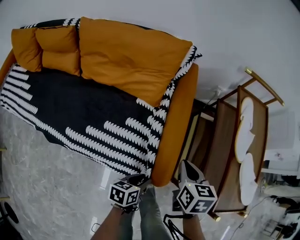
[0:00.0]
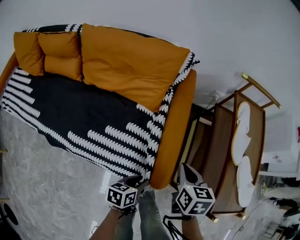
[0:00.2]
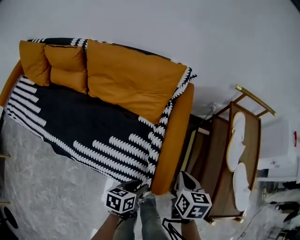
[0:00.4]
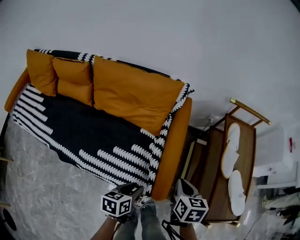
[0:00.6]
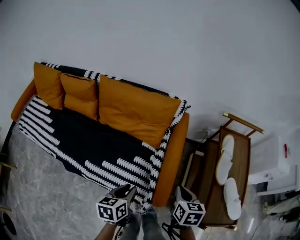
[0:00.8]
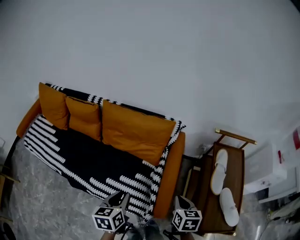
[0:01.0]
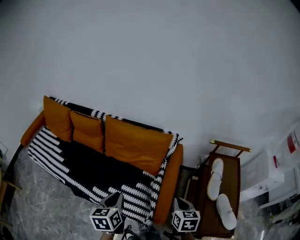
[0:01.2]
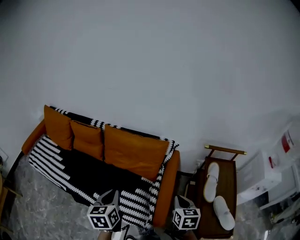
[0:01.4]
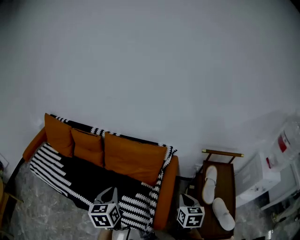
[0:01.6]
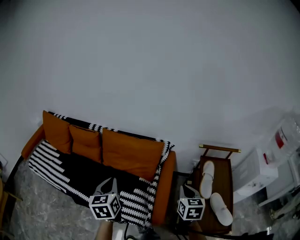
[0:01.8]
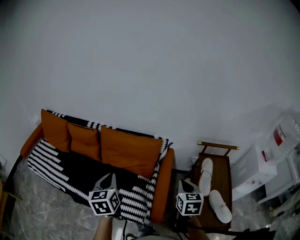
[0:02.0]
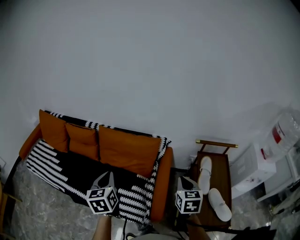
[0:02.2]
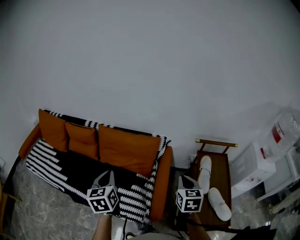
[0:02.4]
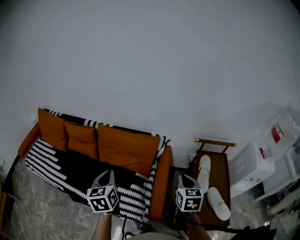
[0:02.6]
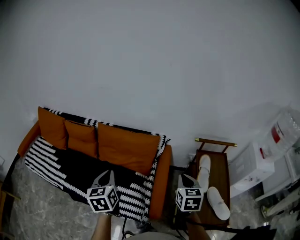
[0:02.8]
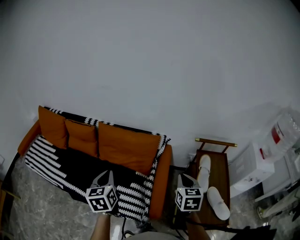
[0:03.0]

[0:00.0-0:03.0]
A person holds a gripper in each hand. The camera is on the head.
0:00.0 to 0:01.6: The left gripper travels upward by some 50 cm, rotates some 50 degrees, and closes its fingers, while the right gripper is displaced upward by roughly 30 cm.
0:01.6 to 0:03.0: The right gripper changes place by roughly 5 cm.

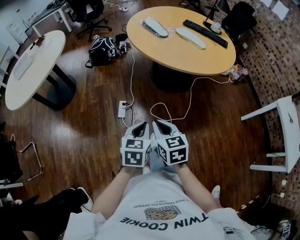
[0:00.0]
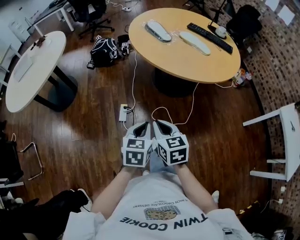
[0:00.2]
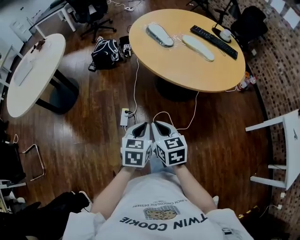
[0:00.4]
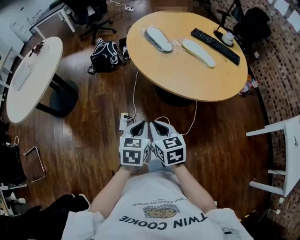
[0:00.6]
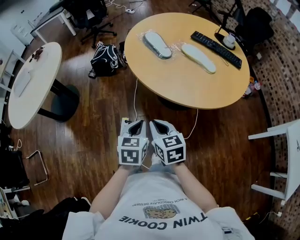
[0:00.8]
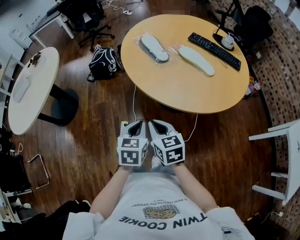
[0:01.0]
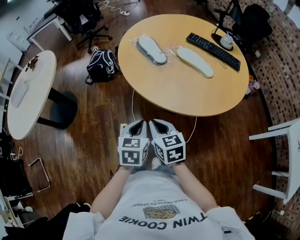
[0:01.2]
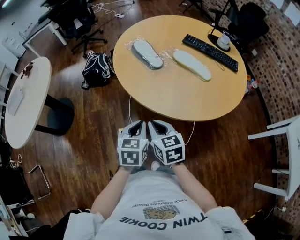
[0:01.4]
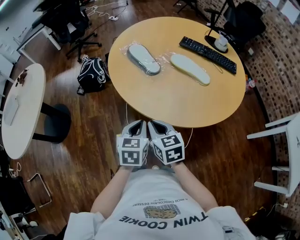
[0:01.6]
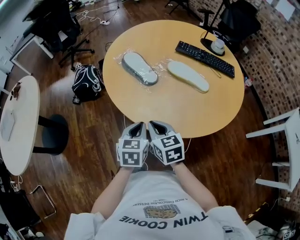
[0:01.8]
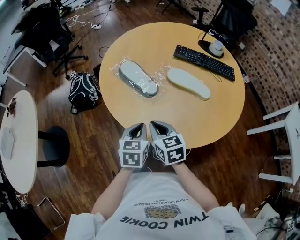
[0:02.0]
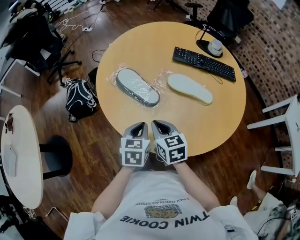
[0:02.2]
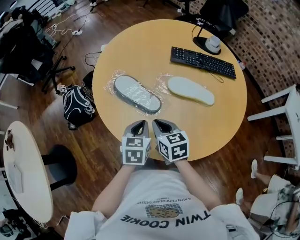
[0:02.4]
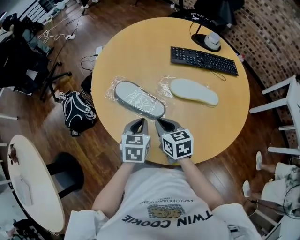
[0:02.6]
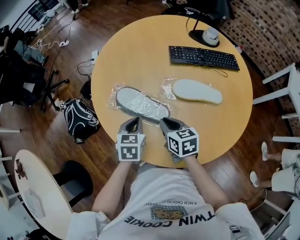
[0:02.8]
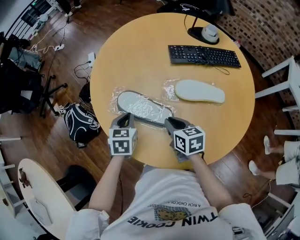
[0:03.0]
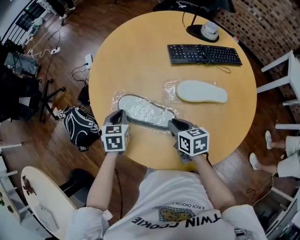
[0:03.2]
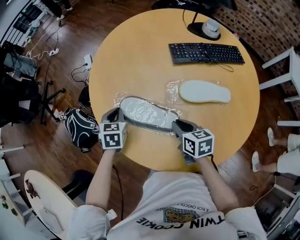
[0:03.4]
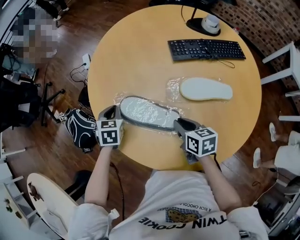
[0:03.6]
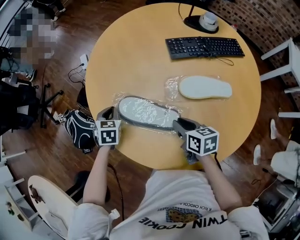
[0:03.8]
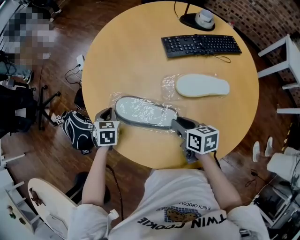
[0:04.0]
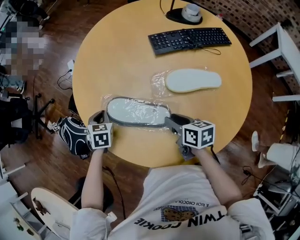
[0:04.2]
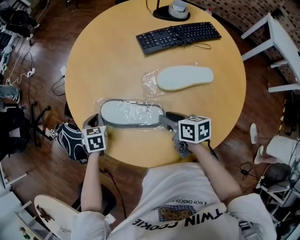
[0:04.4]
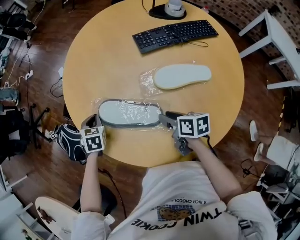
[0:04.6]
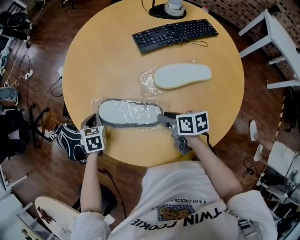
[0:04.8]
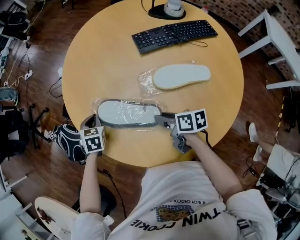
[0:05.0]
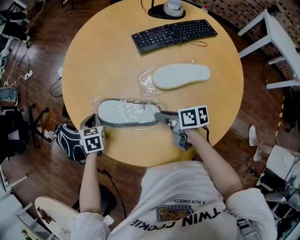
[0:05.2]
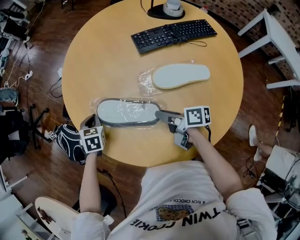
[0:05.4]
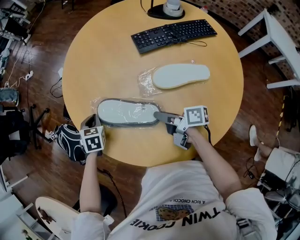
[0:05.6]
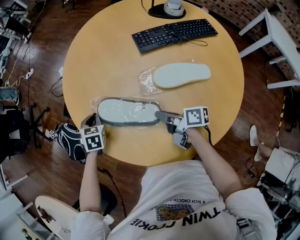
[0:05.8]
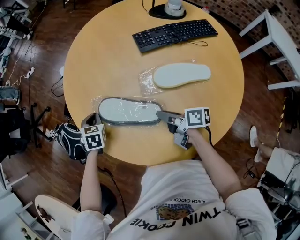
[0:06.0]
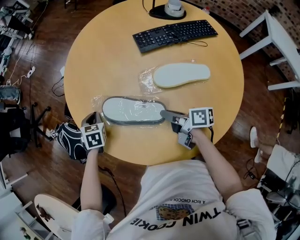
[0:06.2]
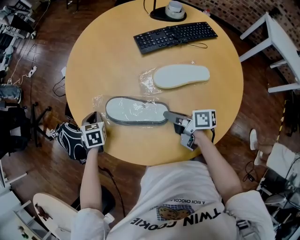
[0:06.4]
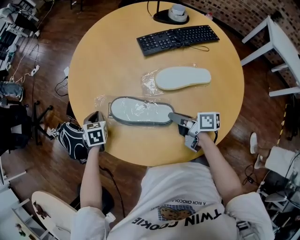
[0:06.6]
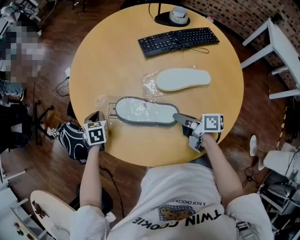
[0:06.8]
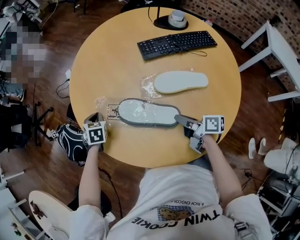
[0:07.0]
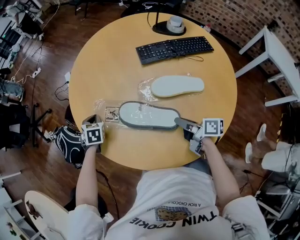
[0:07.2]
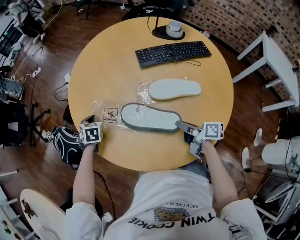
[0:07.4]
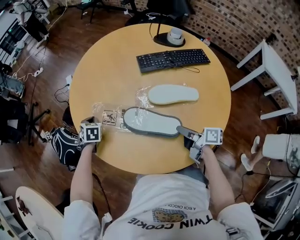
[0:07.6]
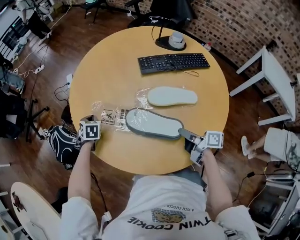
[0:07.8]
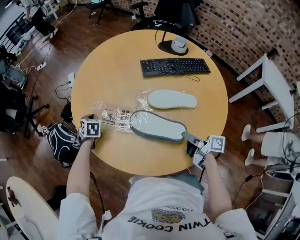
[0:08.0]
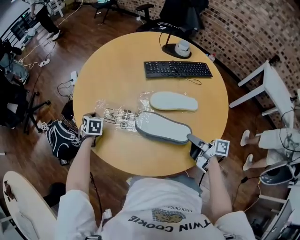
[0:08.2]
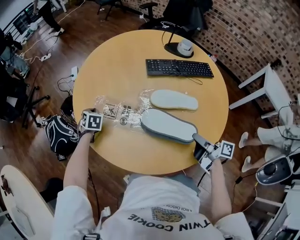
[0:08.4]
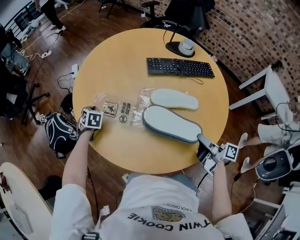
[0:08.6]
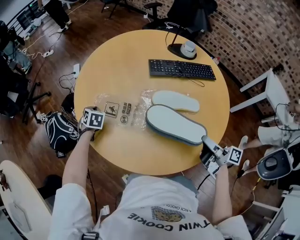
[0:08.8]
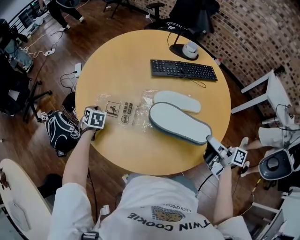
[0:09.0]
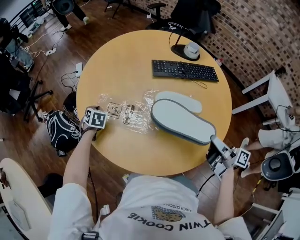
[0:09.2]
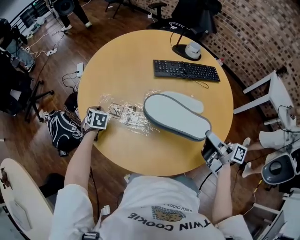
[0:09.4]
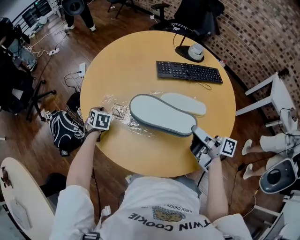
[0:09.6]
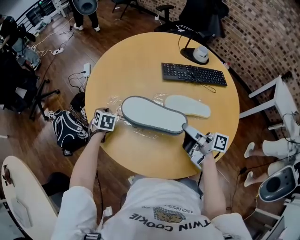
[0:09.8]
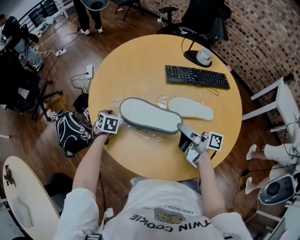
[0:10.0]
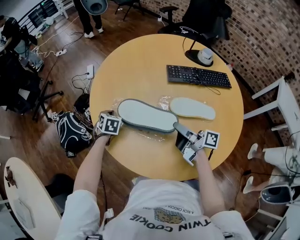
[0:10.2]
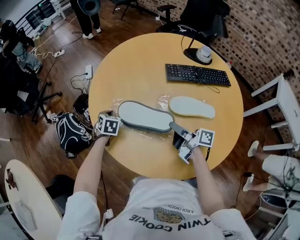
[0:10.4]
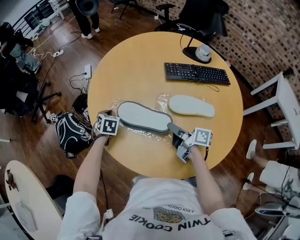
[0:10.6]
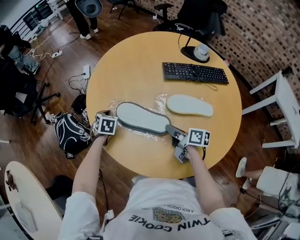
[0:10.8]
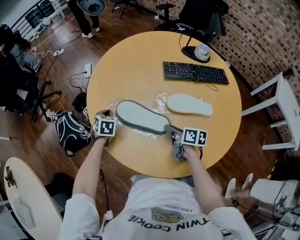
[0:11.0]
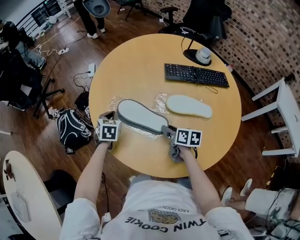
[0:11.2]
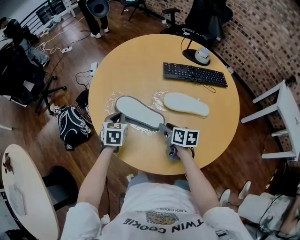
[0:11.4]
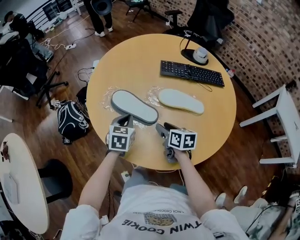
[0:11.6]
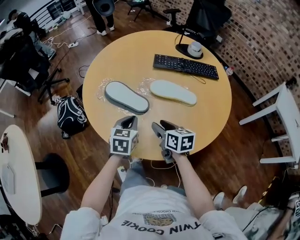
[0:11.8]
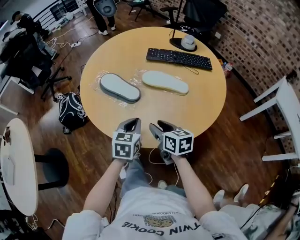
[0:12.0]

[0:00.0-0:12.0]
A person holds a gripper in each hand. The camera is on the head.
0:00.0 to 0:01.6: The grippers both shift forward by roughly 40 cm.
0:01.6 to 0:03.0: The two grippers go about 40 cm forward. The left gripper swivels some 30 degrees, while the right gripper swivels approximately 40 degrees.
0:03.0 to 0:04.4: The right gripper changes its angle by some 20 degrees, and opens. Meanwhile the left gripper moves forward, downward and to the left, some 15 cm.
0:04.4 to 0:06.0: The right gripper swivels about 30 degrees.
0:06.0 to 0:07.6: The right gripper travels backward and to the right by approximately 15 cm.
0:07.6 to 0:09.0: The right gripper goes about 15 cm upward, to the right and backward.
0:09.0 to 0:10.4: The right gripper travels forward, to the left and downward by approximately 25 cm.
0:10.4 to 0:12.0: The left gripper travels backward and to the right by about 40 cm, and turns by about 30 degrees, while the right gripper shifts about 20 cm backward, turns by some 50 degrees, and opens its fingers.

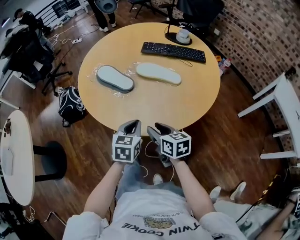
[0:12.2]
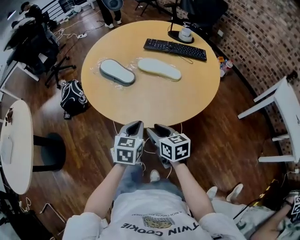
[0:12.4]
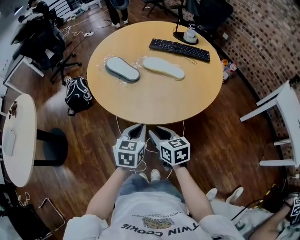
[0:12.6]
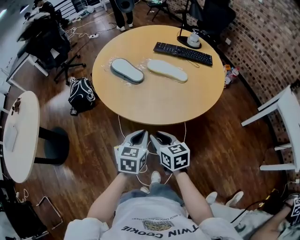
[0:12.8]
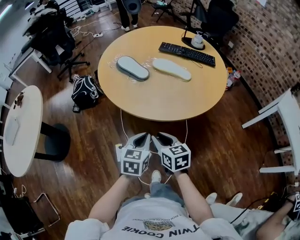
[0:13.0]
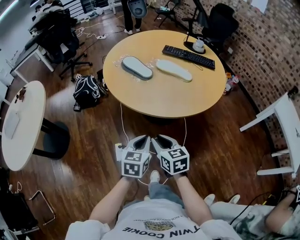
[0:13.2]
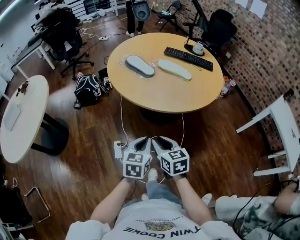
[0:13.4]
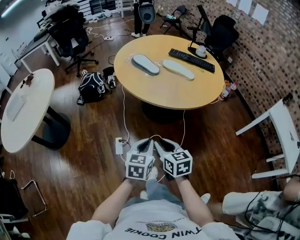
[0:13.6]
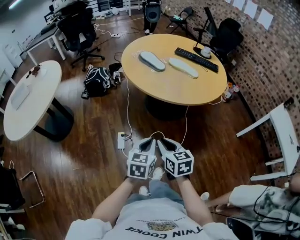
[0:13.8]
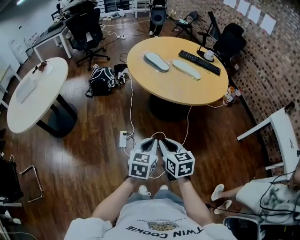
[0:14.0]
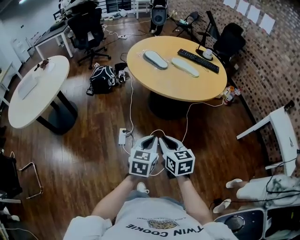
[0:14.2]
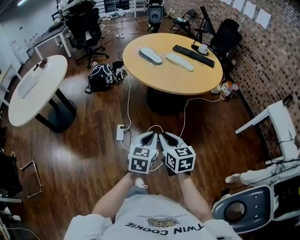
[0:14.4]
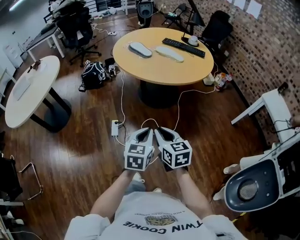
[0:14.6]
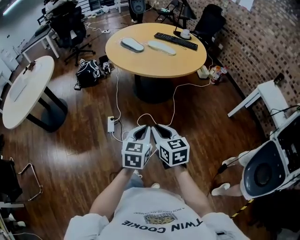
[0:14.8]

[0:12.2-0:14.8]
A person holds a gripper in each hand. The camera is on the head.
0:12.2 to 0:13.4: Both grippers travel together backward, approximately 25 cm.
0:13.4 to 0:14.8: The grippers both shift backward by roughly 25 cm.

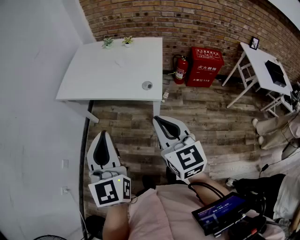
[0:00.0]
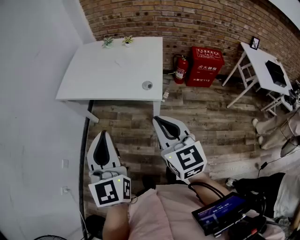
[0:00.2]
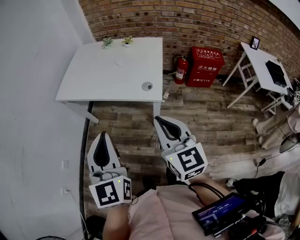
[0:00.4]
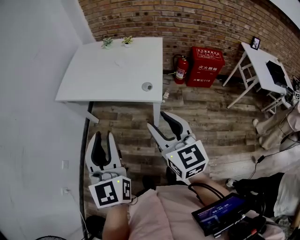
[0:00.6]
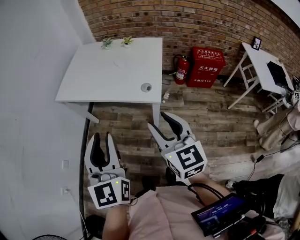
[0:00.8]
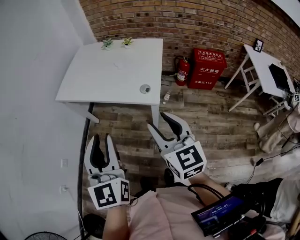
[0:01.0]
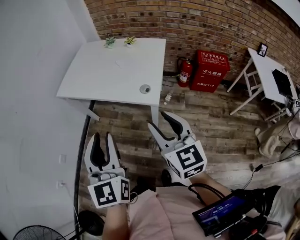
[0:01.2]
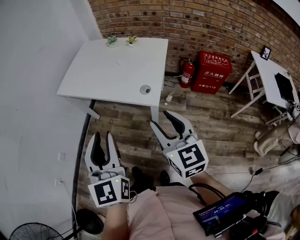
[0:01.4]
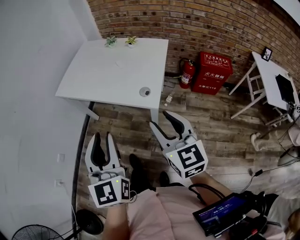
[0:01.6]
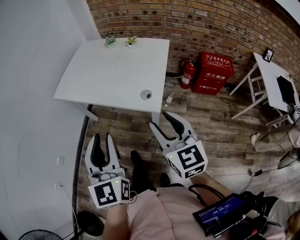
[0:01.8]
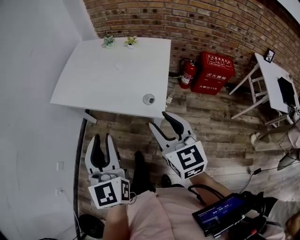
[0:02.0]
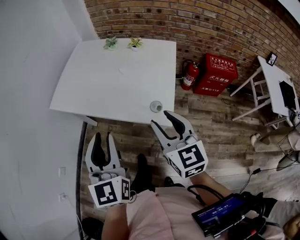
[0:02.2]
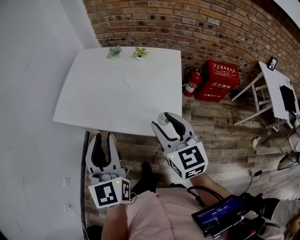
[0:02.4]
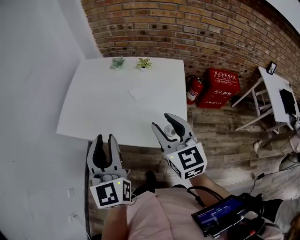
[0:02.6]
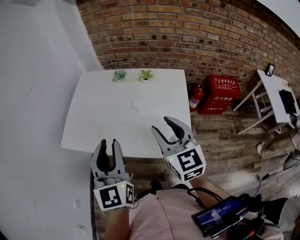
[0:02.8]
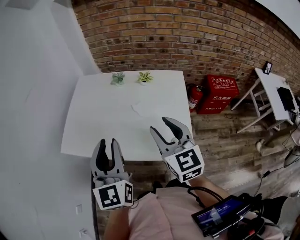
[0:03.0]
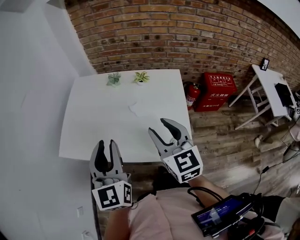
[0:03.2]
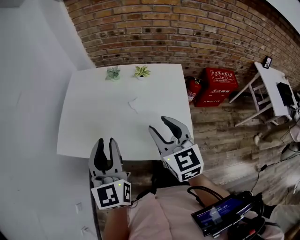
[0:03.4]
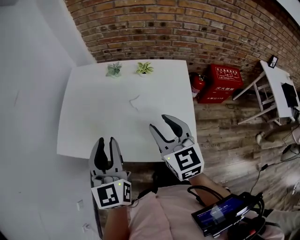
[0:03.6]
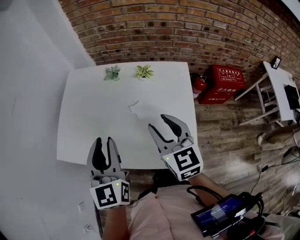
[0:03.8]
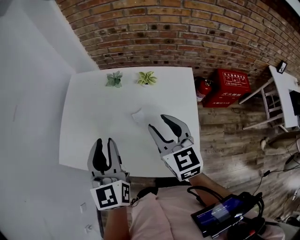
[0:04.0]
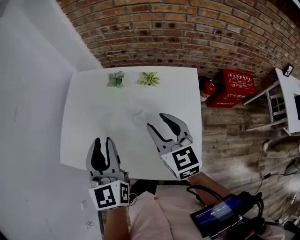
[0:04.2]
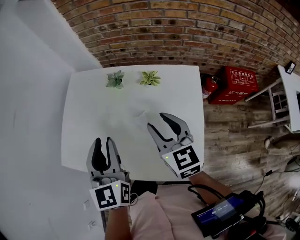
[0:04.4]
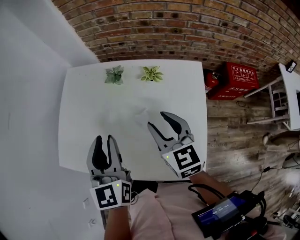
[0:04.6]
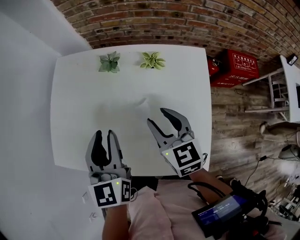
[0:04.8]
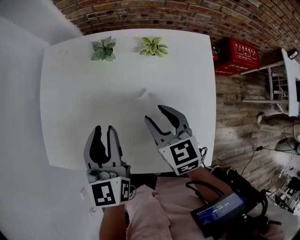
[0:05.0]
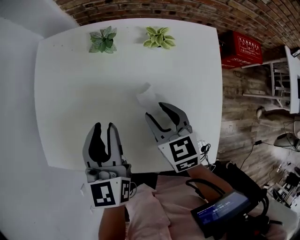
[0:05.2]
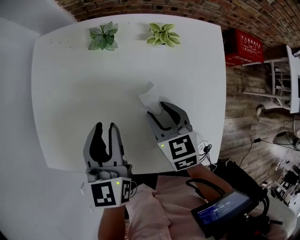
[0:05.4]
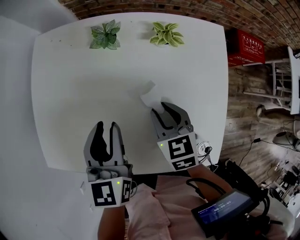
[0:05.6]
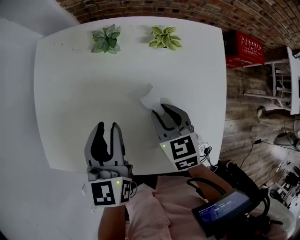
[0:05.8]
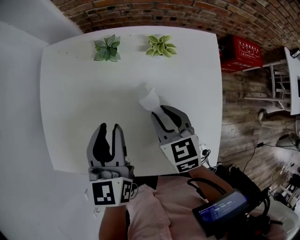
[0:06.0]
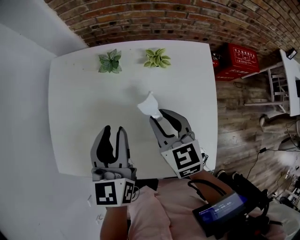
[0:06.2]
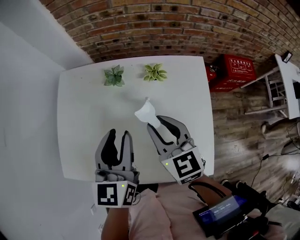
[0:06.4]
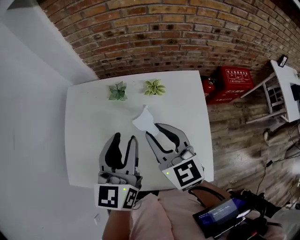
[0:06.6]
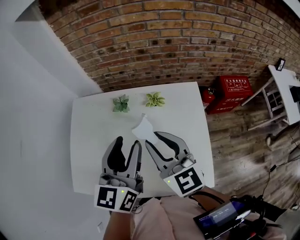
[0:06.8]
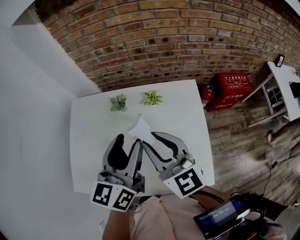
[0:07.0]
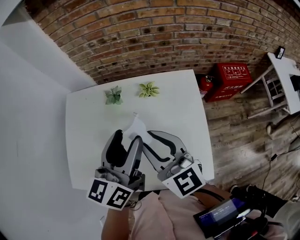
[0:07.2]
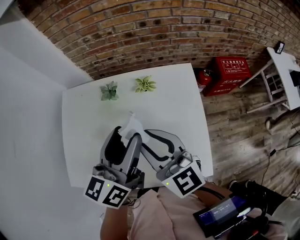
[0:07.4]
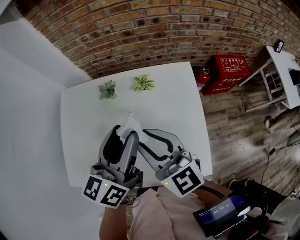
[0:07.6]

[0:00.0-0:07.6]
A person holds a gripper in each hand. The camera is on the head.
0:00.0 to 0:01.6: Both grippers move to the right, approximately 5 cm. The right gripper opens up; the left gripper opens its fingers.
0:01.6 to 0:03.0: The grippers both shift forward by approximately 30 cm.
0:03.0 to 0:04.6: The grippers both shift forward and downward by about 20 cm.
0:04.6 to 0:06.0: Both grippers travel together downward, roughly 10 cm.
0:06.0 to 0:07.6: The left gripper shifts about 15 cm upward and to the right, and swivels about 30 degrees. Meanwhile the right gripper is displaced upward by roughly 20 cm, and tilts its fingers approximately 30 degrees upward.
